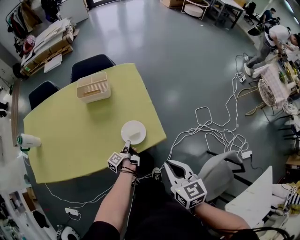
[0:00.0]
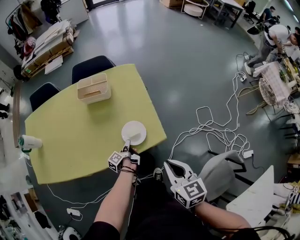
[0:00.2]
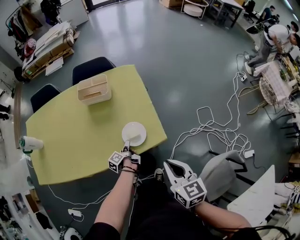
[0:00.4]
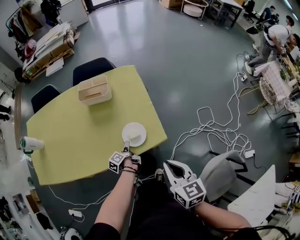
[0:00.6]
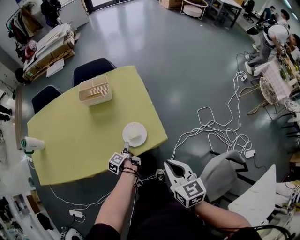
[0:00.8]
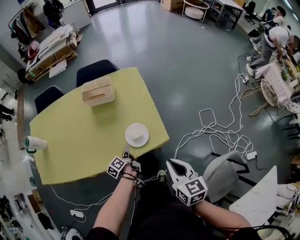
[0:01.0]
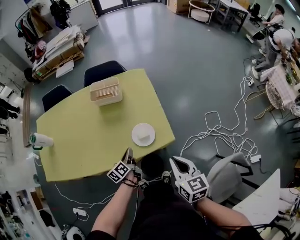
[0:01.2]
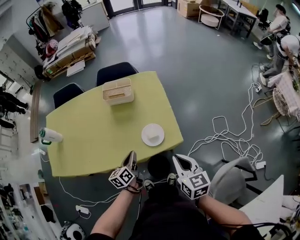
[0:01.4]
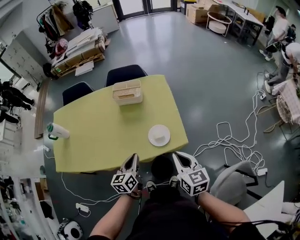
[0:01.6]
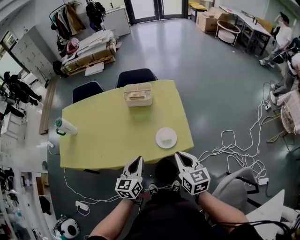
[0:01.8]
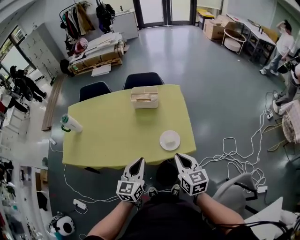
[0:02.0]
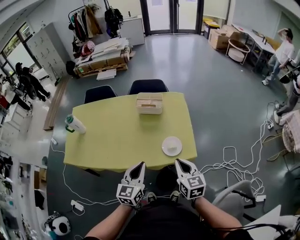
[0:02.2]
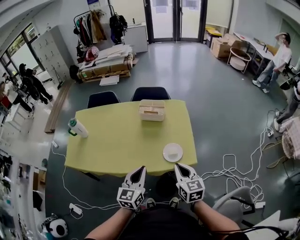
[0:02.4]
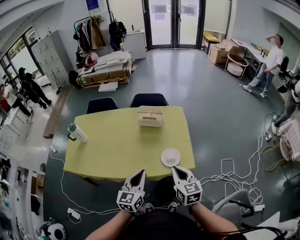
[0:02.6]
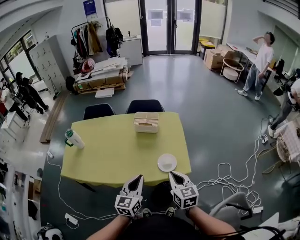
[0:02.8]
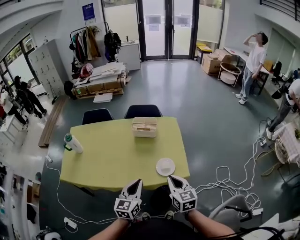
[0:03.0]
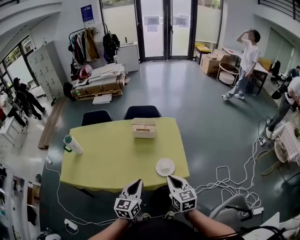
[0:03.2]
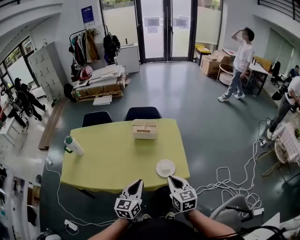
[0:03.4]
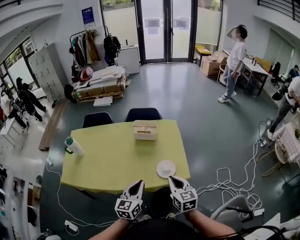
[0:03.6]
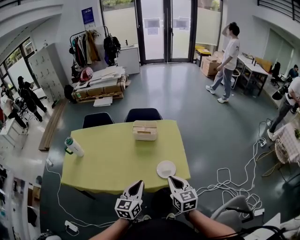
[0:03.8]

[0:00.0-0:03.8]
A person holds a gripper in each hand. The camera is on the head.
0:01.2 to 0:02.6: The right gripper shifts by approximately 15 cm.

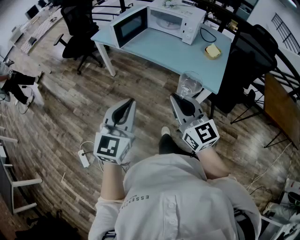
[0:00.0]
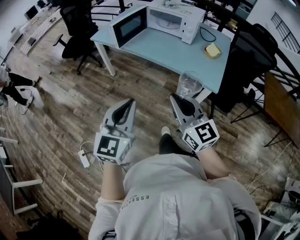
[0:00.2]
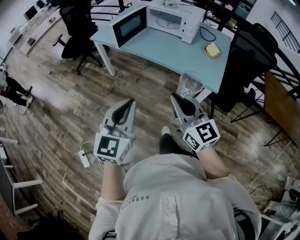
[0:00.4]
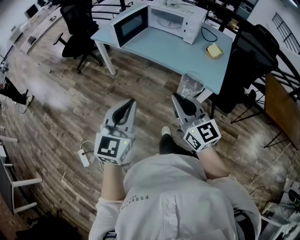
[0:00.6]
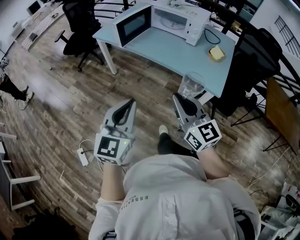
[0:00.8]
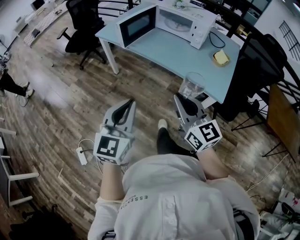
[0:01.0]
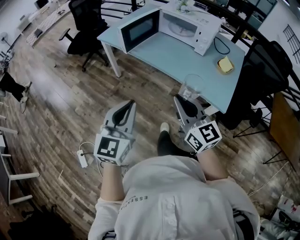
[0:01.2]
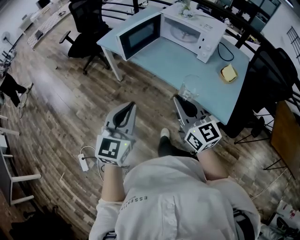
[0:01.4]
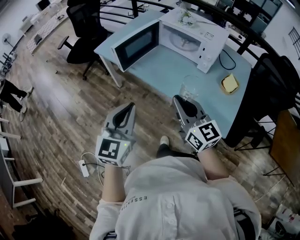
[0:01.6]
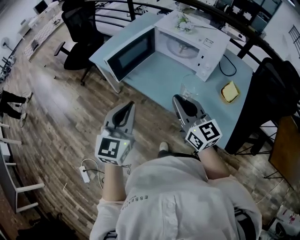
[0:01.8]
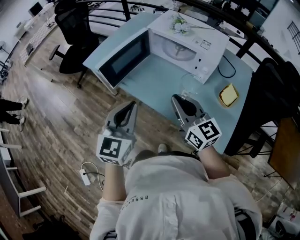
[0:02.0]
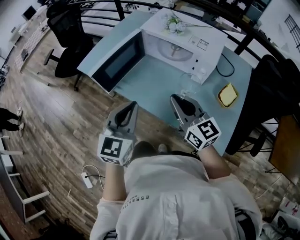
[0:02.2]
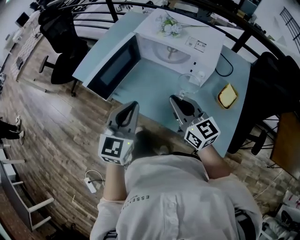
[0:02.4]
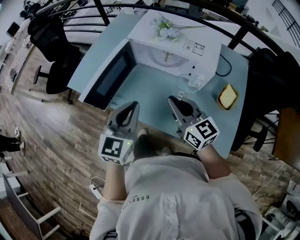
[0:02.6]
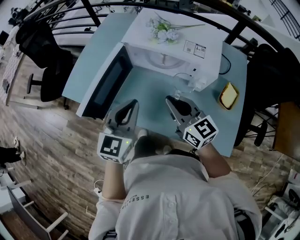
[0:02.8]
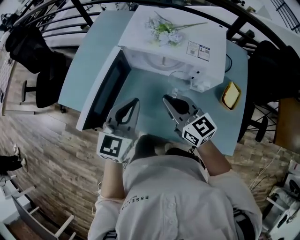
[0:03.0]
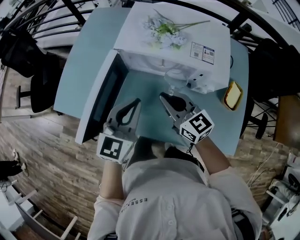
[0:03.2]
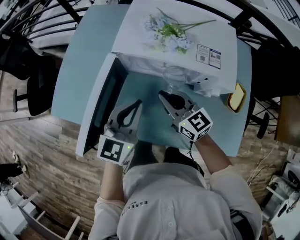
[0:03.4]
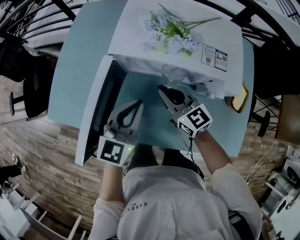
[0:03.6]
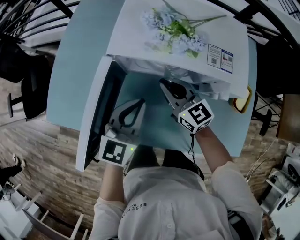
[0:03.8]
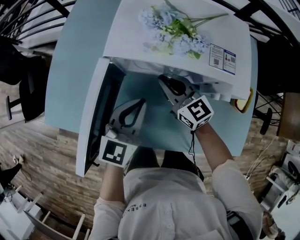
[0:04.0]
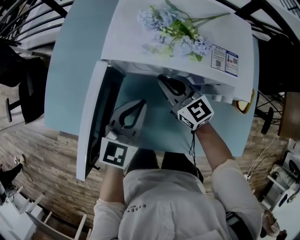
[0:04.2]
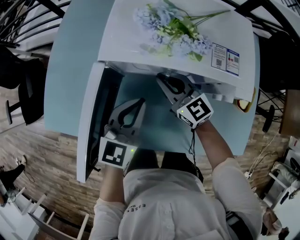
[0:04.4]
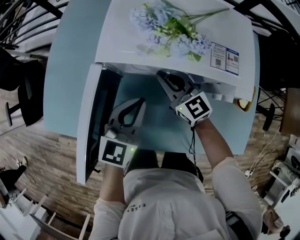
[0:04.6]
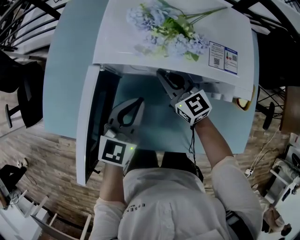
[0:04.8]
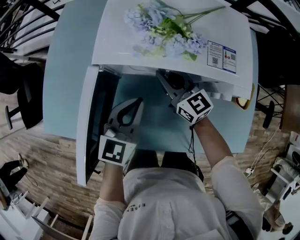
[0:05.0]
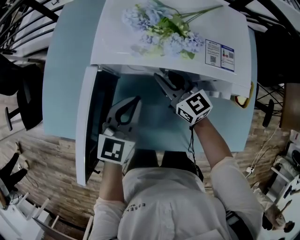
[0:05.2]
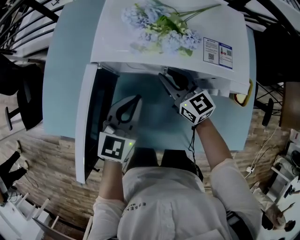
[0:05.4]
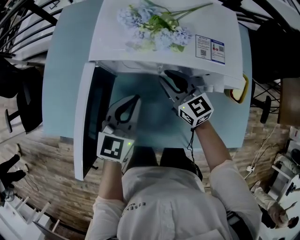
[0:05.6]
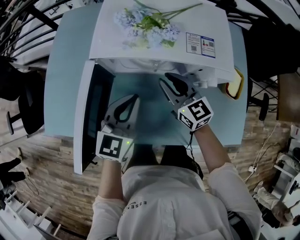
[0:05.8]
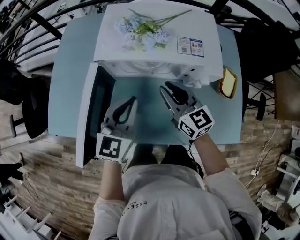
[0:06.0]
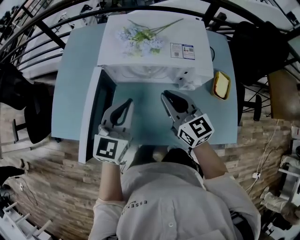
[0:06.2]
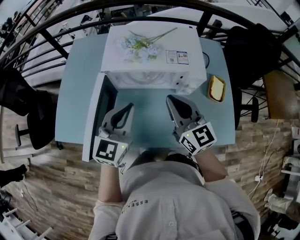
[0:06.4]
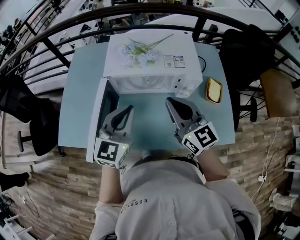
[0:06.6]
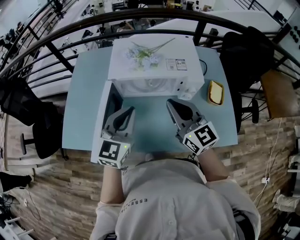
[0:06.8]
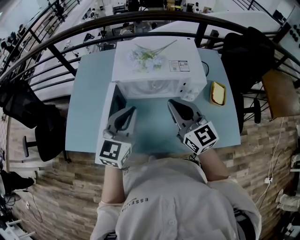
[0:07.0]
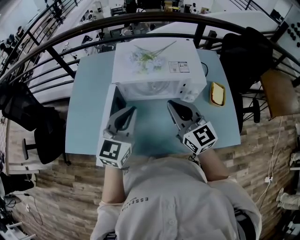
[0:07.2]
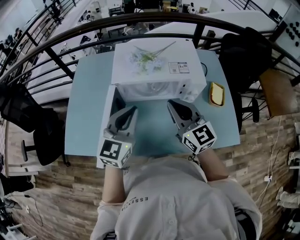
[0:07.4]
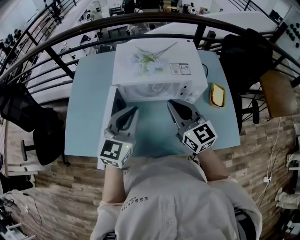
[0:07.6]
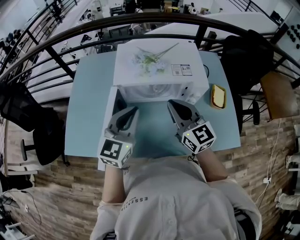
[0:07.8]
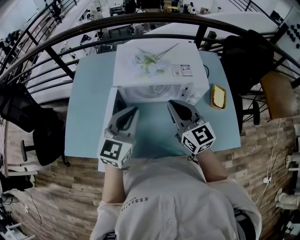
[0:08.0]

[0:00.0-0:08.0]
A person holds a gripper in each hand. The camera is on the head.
0:00.0 to 0:01.6: Both grippers travel together forward, some 25 cm.
0:01.6 to 0:03.2: The two grippers go roughly 40 cm forward. The left gripper changes its angle by about 30 degrees.
0:03.2 to 0:04.8: The right gripper goes some 15 cm forward and downward; the left gripper shifts some 10 cm downward and forward.
0:04.8 to 0:06.4: The right gripper travels upward and backward by about 25 cm, and swivels roughly 20 degrees, while the left gripper moves upward and backward, some 15 cm.
0:06.4 to 0:08.0: There are only small adjustments of the grippers.

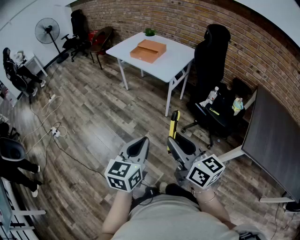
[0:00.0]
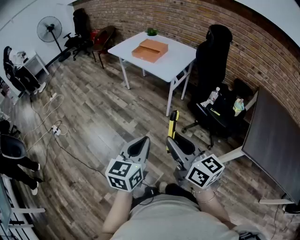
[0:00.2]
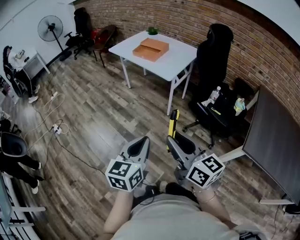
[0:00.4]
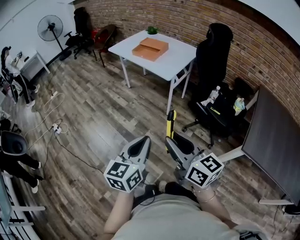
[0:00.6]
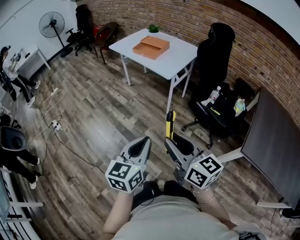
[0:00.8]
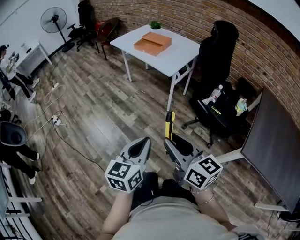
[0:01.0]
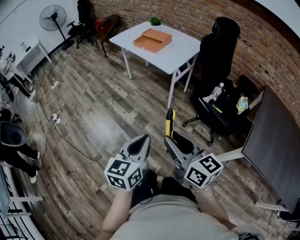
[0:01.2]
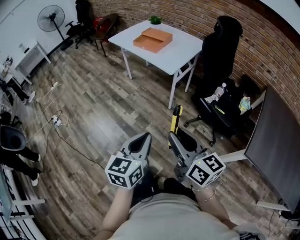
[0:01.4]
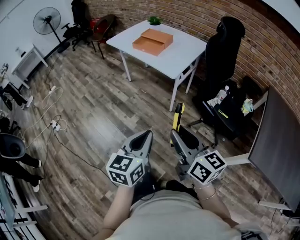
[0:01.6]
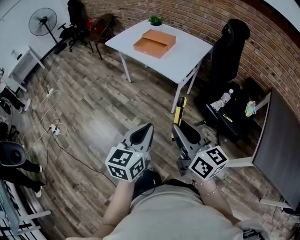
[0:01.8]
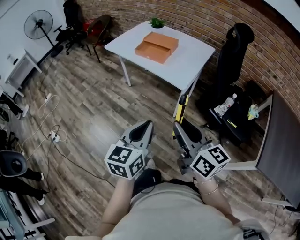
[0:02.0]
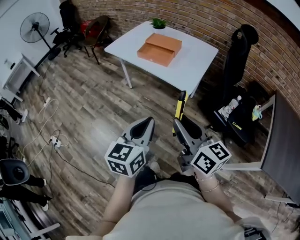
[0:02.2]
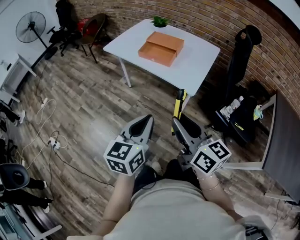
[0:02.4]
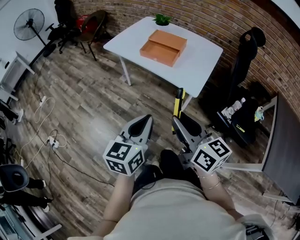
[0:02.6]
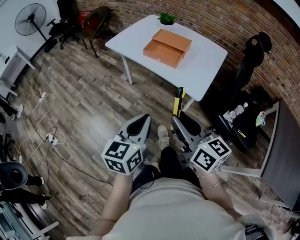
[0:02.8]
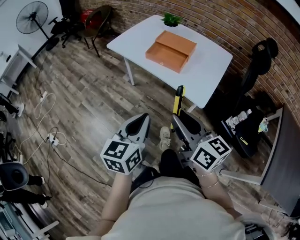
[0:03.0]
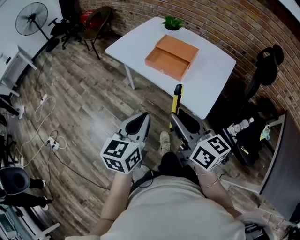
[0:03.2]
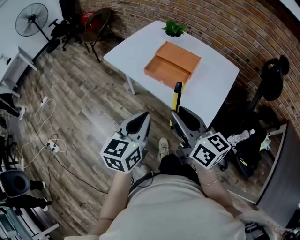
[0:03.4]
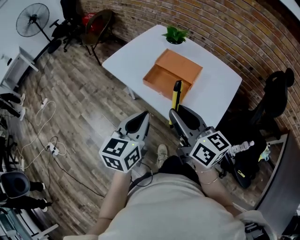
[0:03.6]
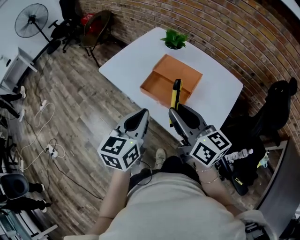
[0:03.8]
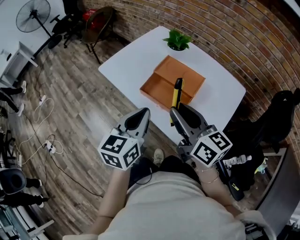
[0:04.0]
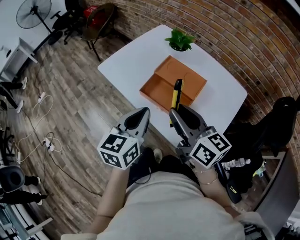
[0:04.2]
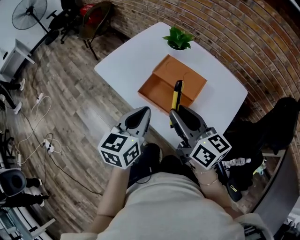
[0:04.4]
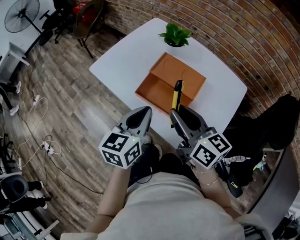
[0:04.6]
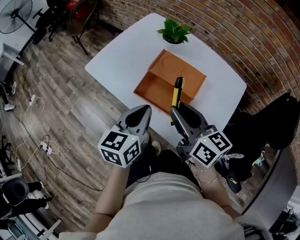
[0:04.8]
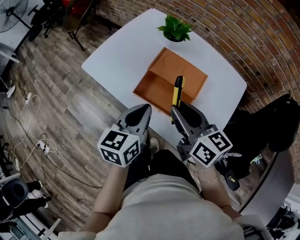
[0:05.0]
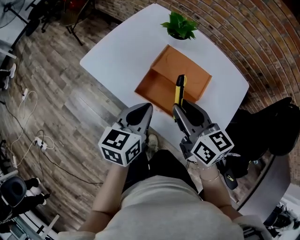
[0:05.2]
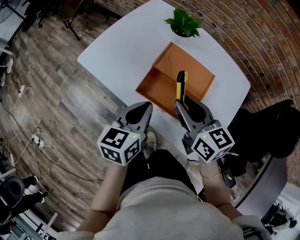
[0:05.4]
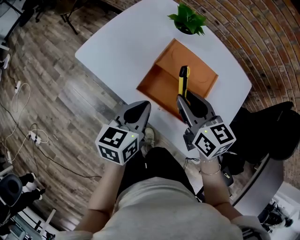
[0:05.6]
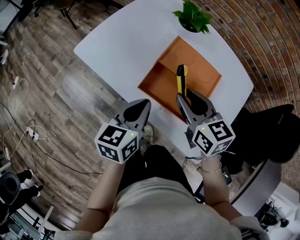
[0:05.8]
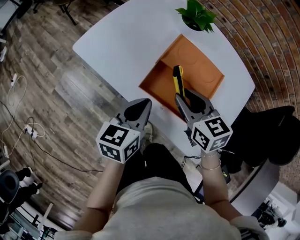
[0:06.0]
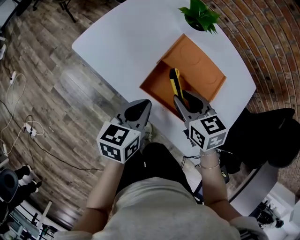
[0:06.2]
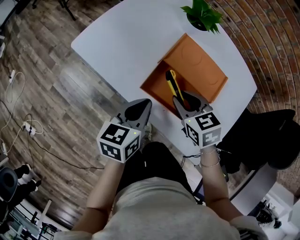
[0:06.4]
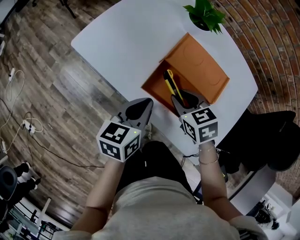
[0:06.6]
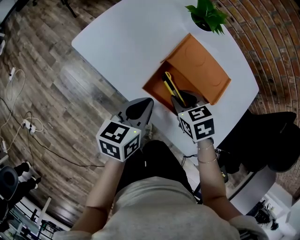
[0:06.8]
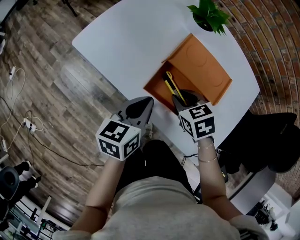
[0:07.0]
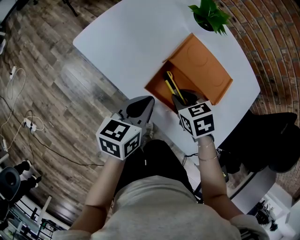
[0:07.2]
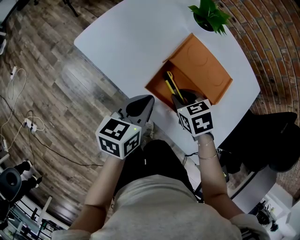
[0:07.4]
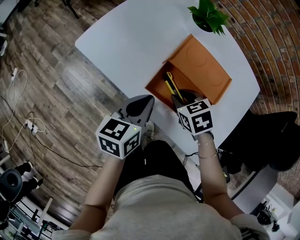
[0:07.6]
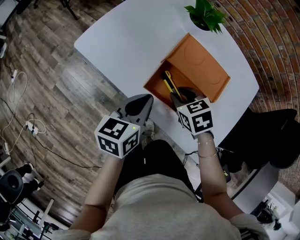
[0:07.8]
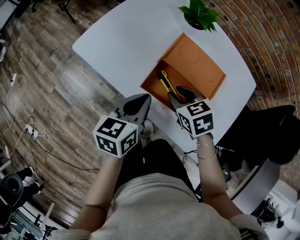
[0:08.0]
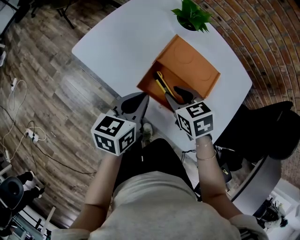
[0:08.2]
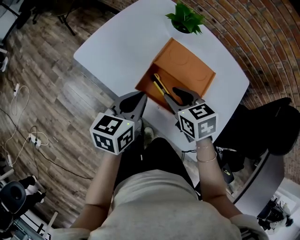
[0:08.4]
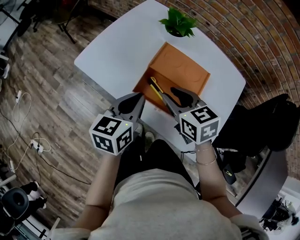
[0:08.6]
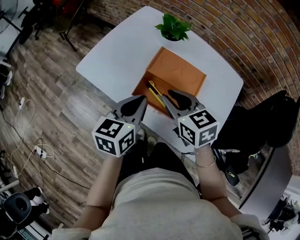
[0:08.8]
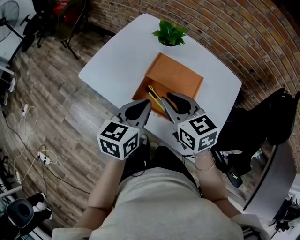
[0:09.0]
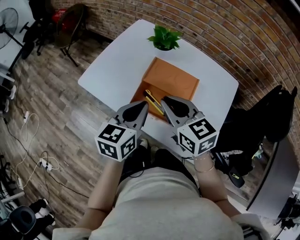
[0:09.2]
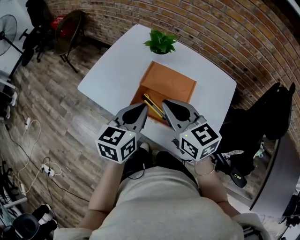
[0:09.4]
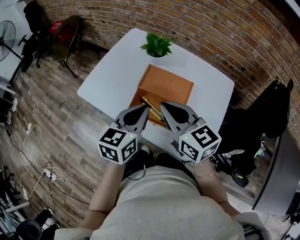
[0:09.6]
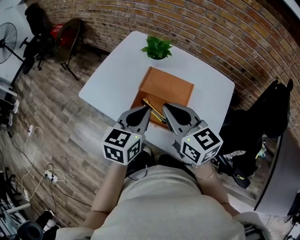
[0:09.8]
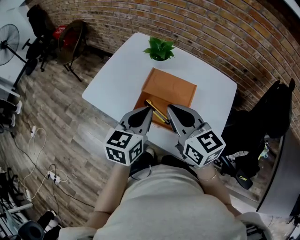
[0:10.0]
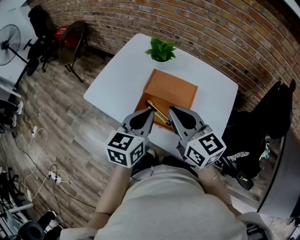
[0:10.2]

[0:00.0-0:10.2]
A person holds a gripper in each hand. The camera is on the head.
0:00.0 to 0:01.4: The left gripper changes place by some 5 cm, while the right gripper changes place by some 5 cm.
0:01.4 to 0:03.0: Both grippers are carried forward and to the left, about 50 cm.
0:03.0 to 0:04.4: The two grippers go about 35 cm forward.
0:04.4 to 0:05.8: The left gripper moves downward and forward, approximately 15 cm; the right gripper heads forward and downward, covering approximately 15 cm, and turns by roughly 30 degrees.
0:05.8 to 0:07.2: The right gripper is displaced downward by roughly 15 cm, and tilts its fingers approximately 30 degrees downward.
0:07.2 to 0:08.8: The right gripper travels upward by some 15 cm, and changes its angle by some 30 degrees, while the left gripper is displaced upward by some 10 cm.
0:08.8 to 0:10.2: The right gripper moves upward, roughly 10 cm, changes its angle by approximately 20 degrees, and closes. The left gripper changes place by some 5 cm.

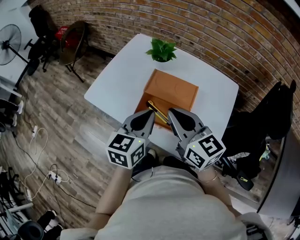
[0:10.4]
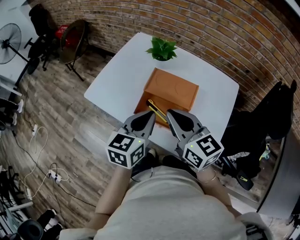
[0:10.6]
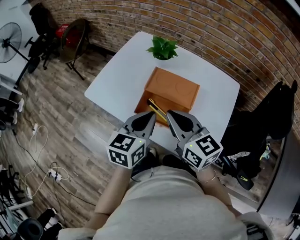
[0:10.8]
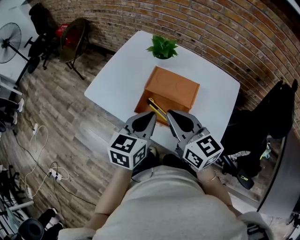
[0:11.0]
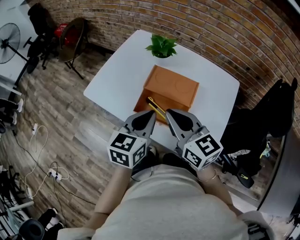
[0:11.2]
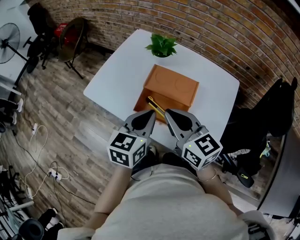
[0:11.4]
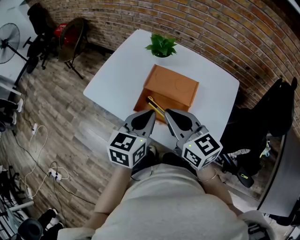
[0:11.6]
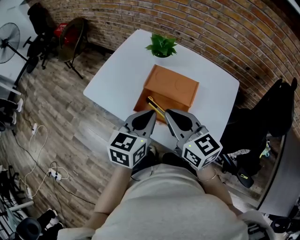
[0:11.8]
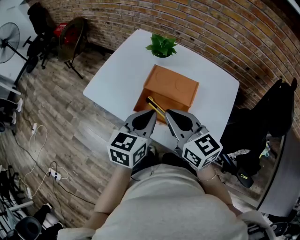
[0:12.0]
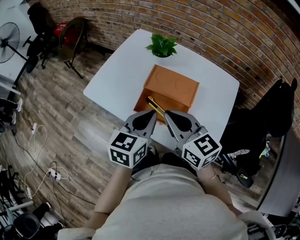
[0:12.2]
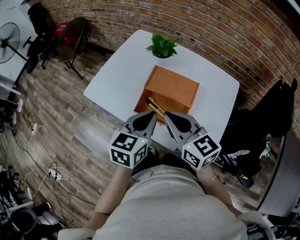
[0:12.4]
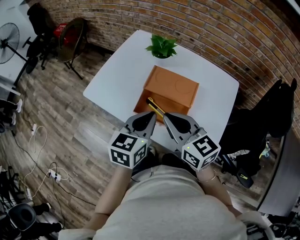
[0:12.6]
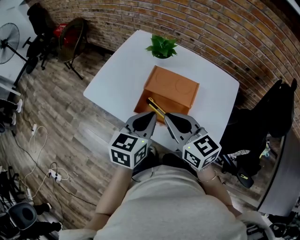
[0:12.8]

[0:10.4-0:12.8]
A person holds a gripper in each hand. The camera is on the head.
0:10.4 to 0:12.8: The grippers move only a little.
